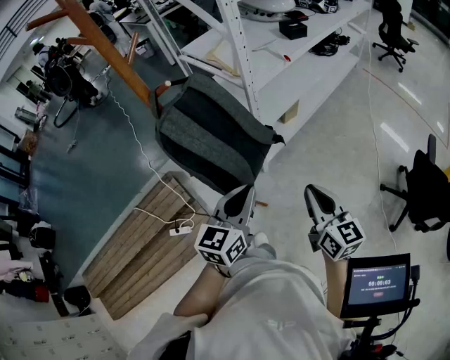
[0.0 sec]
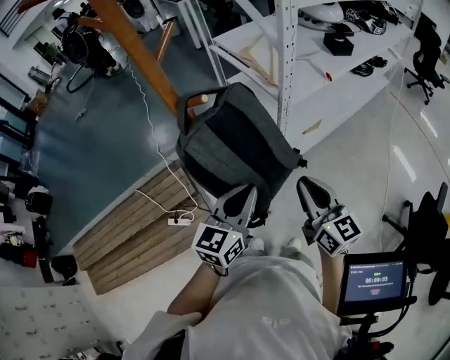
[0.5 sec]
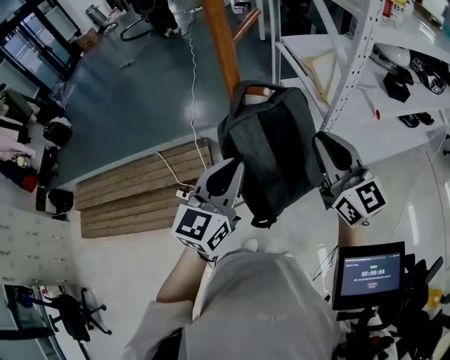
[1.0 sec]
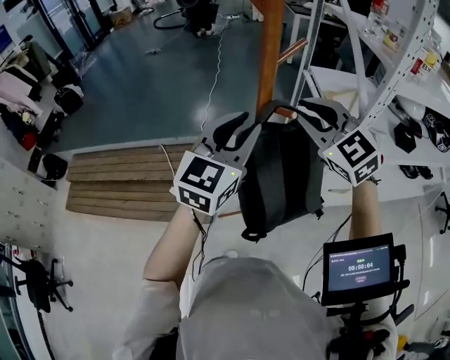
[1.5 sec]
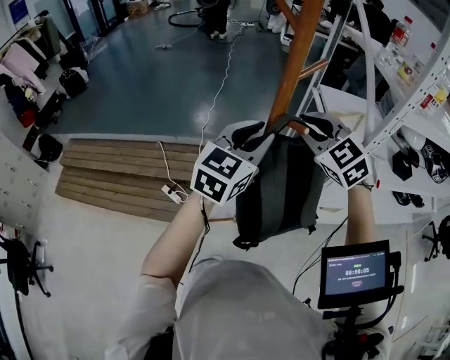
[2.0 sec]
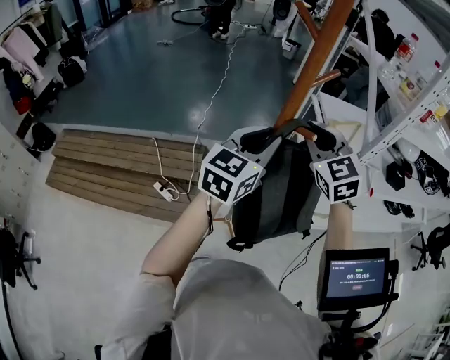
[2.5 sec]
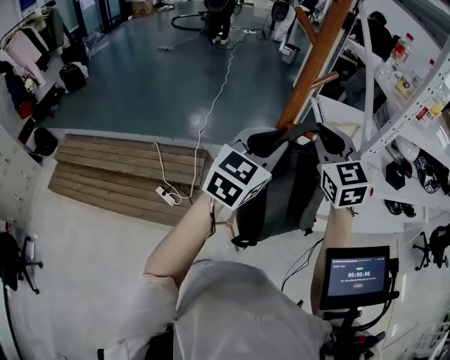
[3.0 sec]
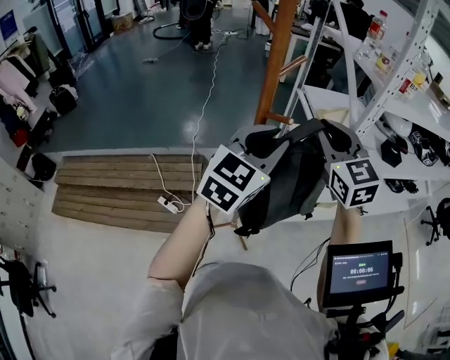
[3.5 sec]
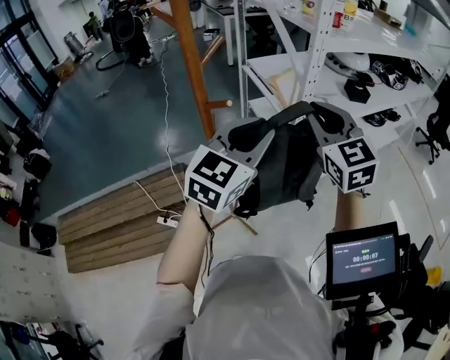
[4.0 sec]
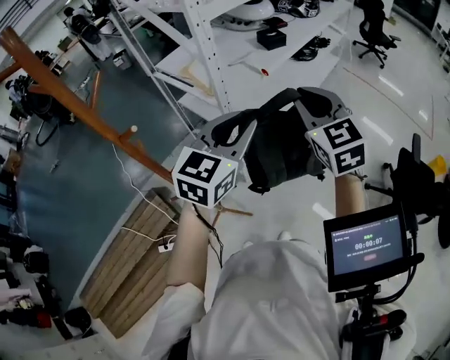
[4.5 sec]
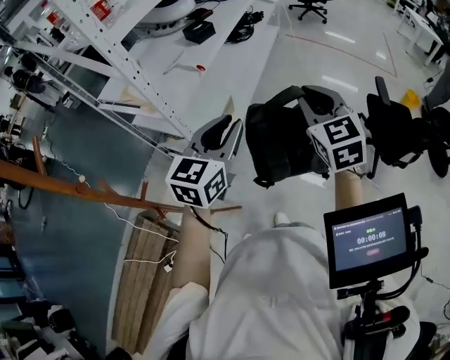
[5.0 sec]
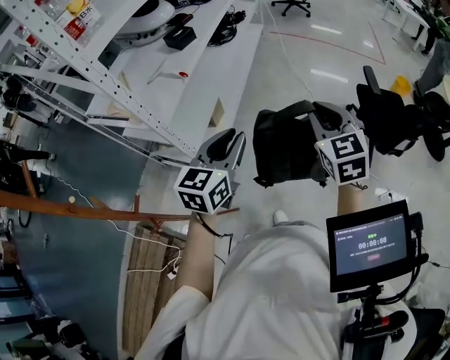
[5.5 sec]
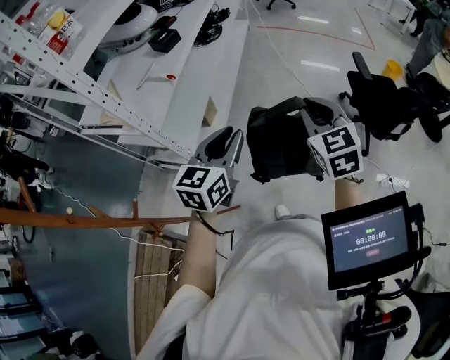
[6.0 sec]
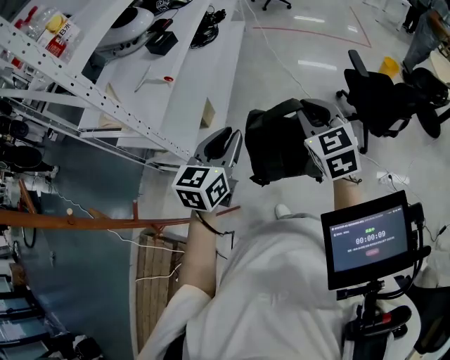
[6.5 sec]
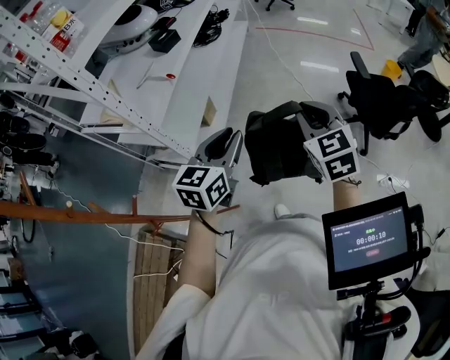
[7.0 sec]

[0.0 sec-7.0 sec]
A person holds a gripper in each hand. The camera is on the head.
0.0 sec to 2.0 sec: The right gripper shifts by some 50 cm, and changes its angle by roughly 80 degrees; the left gripper moves about 30 cm, turns by about 40 degrees, and opens its fingers.
2.0 sec to 3.5 sec: The left gripper is displaced backward by approximately 5 cm, while the right gripper goes roughly 10 cm to the right, upward and backward, and changes its angle by about 30 degrees.
3.5 sec to 5.0 sec: The right gripper moves approximately 50 cm, and rotates about 70 degrees, while the left gripper shifts by approximately 35 cm, and rotates roughly 50 degrees.
5.0 sec to 7.0 sec: The left gripper travels downward and to the right by approximately 10 cm, while the right gripper is displaced to the right and downward by about 10 cm.

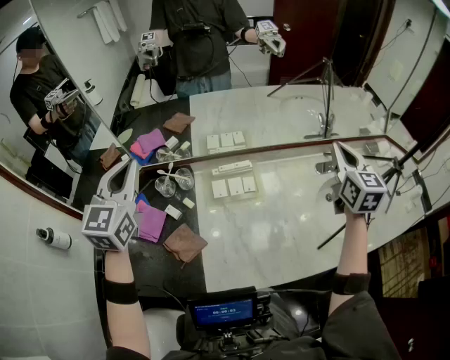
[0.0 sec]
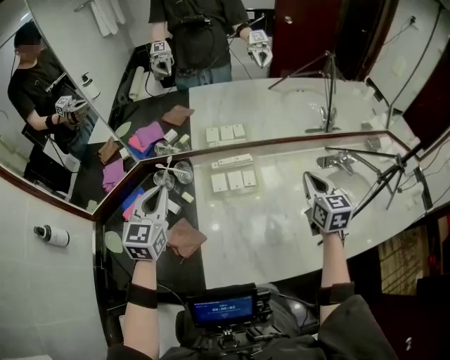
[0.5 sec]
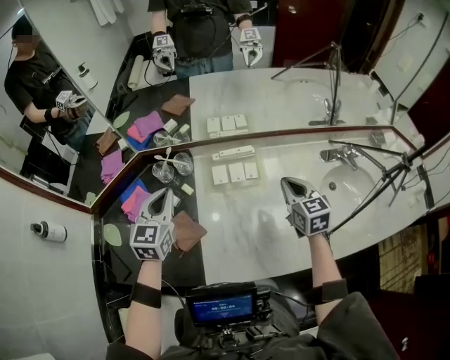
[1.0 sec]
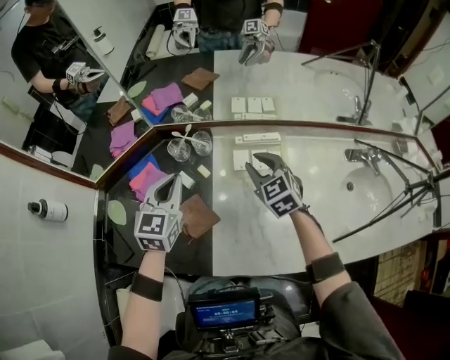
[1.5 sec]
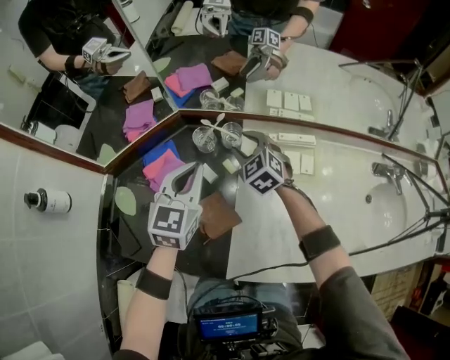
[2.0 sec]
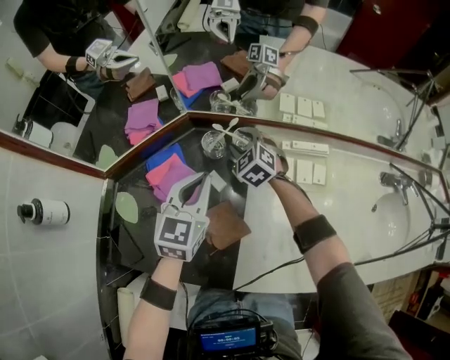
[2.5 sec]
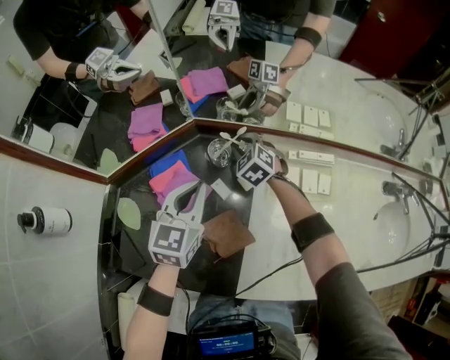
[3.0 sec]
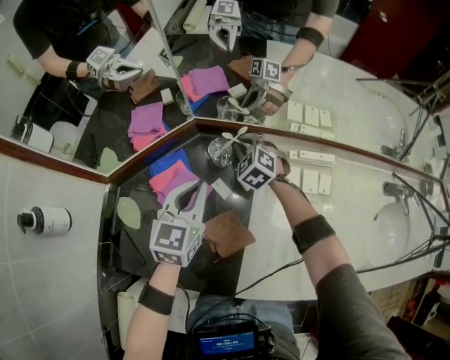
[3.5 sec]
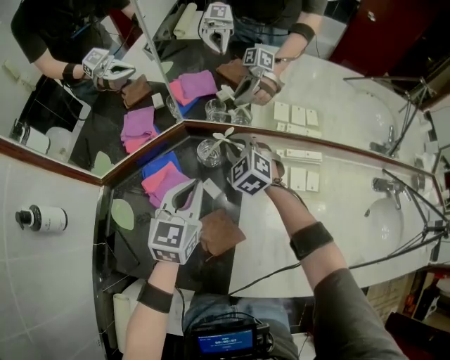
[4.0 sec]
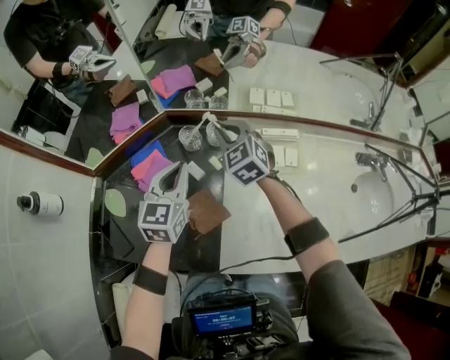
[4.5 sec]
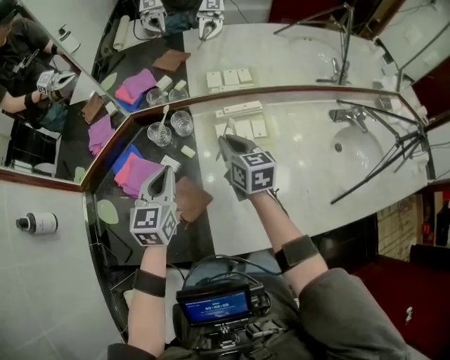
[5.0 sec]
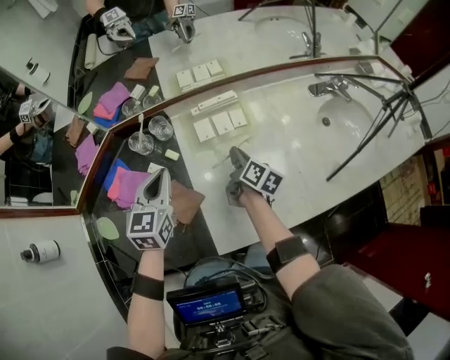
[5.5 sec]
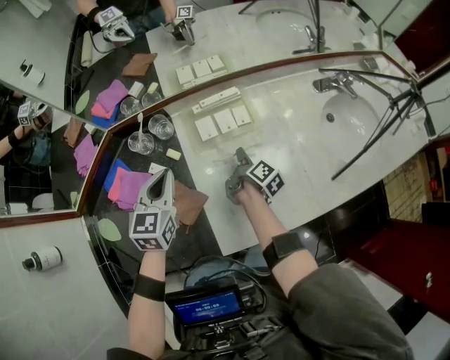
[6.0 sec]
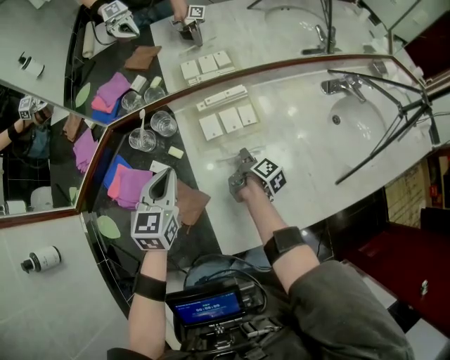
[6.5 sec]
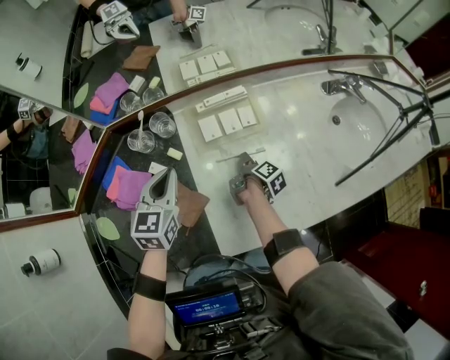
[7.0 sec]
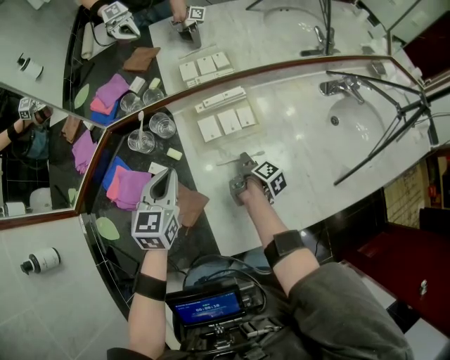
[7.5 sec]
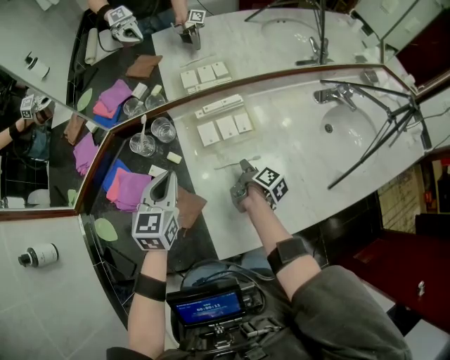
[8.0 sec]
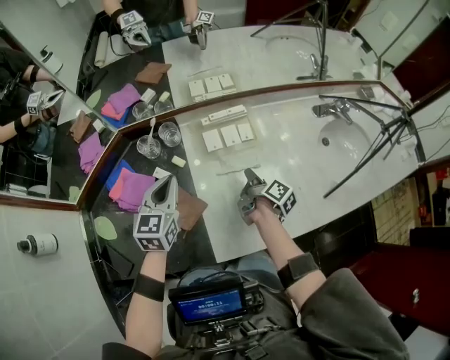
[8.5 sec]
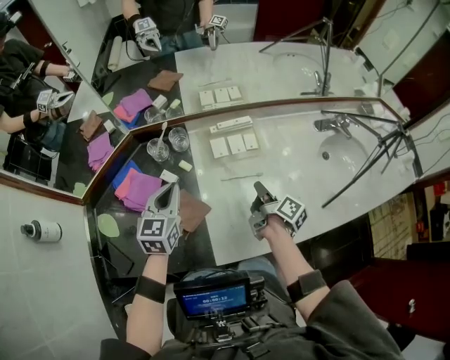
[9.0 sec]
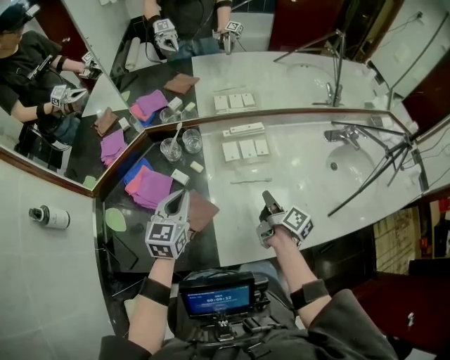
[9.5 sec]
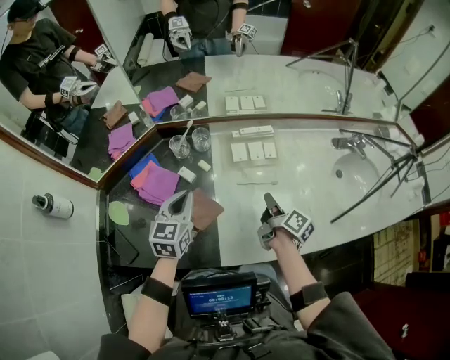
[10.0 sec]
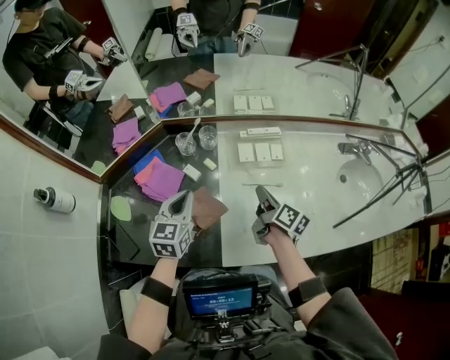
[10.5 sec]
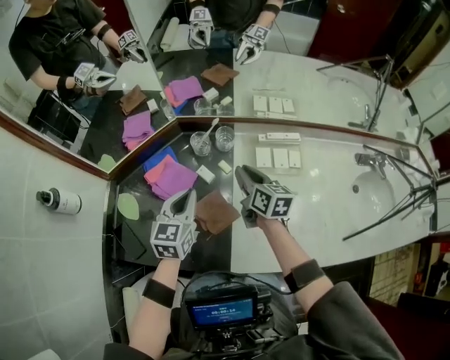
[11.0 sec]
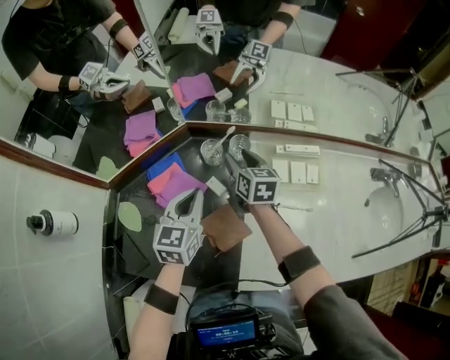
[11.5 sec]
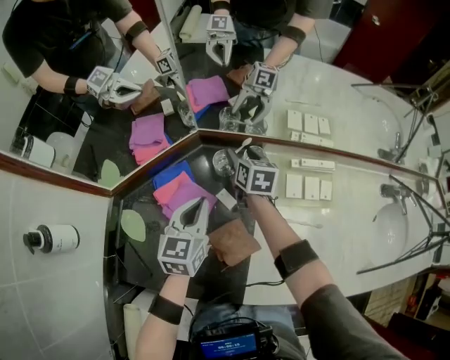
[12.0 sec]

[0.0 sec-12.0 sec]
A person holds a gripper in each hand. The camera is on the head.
0.0 sec to 2.0 sec: The left gripper travels downward by roughly 25 cm. The right gripper shifts some 60 cm to the left and downward, rotates roughly 60 degrees, and opens its fingers.
2.0 sec to 4.0 sec: The right gripper travels forward and to the left by approximately 10 cm, goes downward and returns, roughly 10 cm each way, and closes up; the left gripper shifts by some 5 cm.
4.0 sec to 6.0 sec: The left gripper moves approximately 15 cm. The right gripper ends up about 35 cm from where it was, and twists about 130 degrees clockwise, seen from behind.
8.0 sec to 10.0 sec: The left gripper goes some 10 cm backward. The right gripper shifts roughly 15 cm upward and backward, and changes its angle by some 30 degrees.
10.0 sec to 12.0 sec: The left gripper travels forward, to the left and downward by roughly 15 cm; the right gripper heads forward and to the left, covering approximately 40 cm, rolls counterclockwise, seen from behind, by roughly 50 degrees, and opens up.

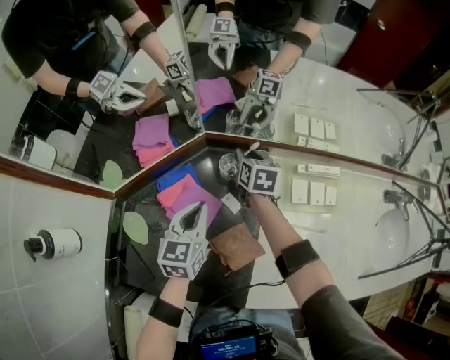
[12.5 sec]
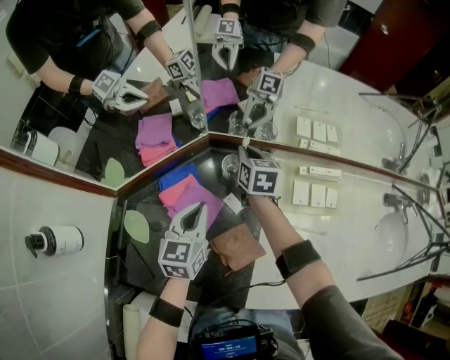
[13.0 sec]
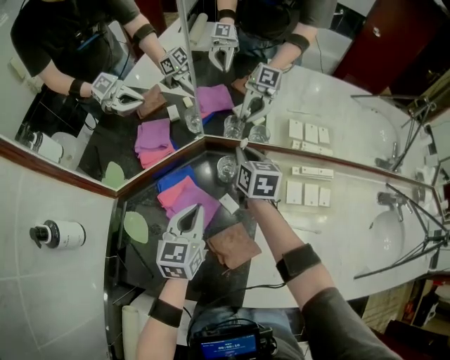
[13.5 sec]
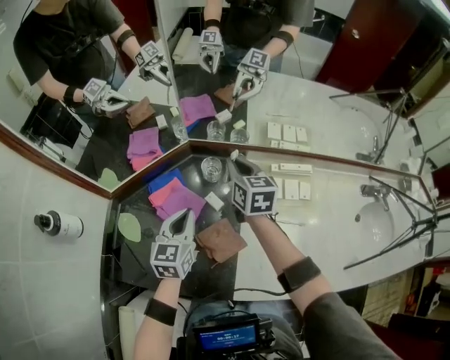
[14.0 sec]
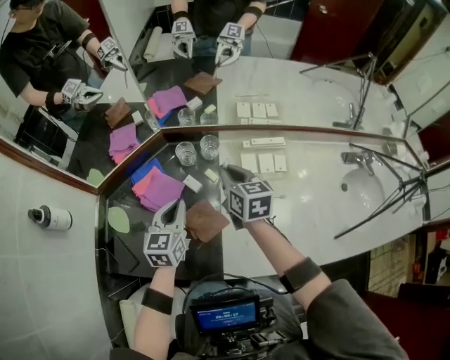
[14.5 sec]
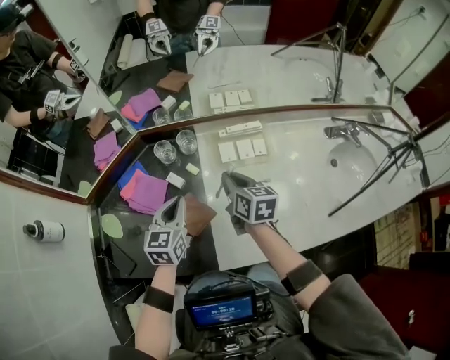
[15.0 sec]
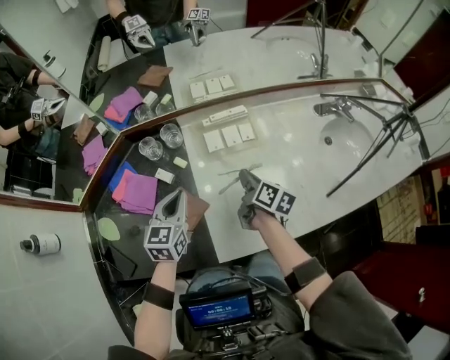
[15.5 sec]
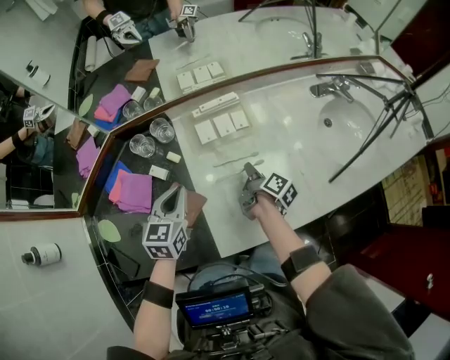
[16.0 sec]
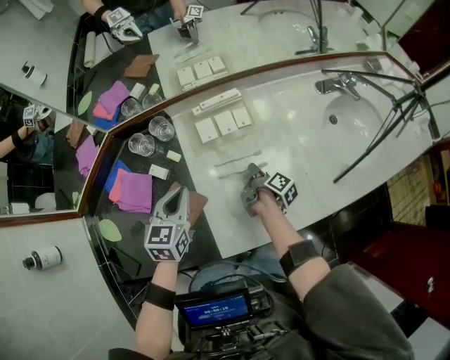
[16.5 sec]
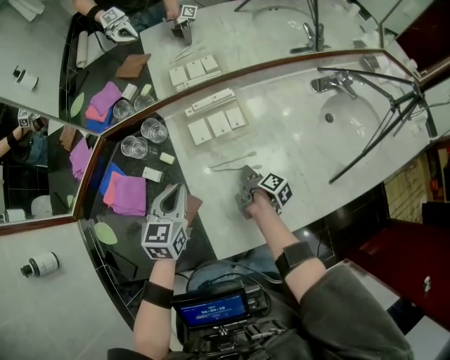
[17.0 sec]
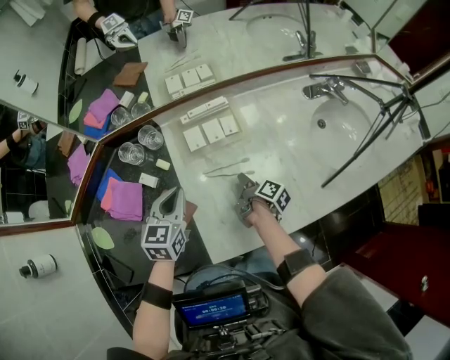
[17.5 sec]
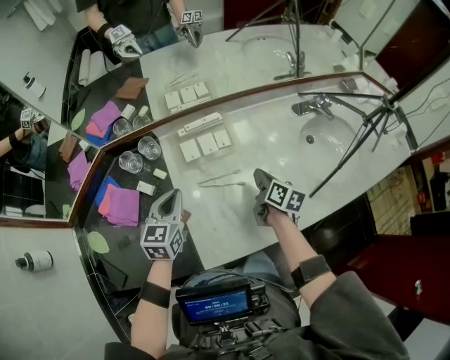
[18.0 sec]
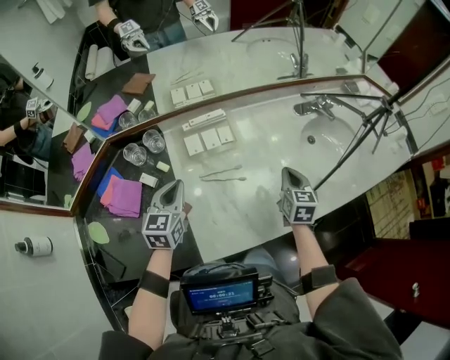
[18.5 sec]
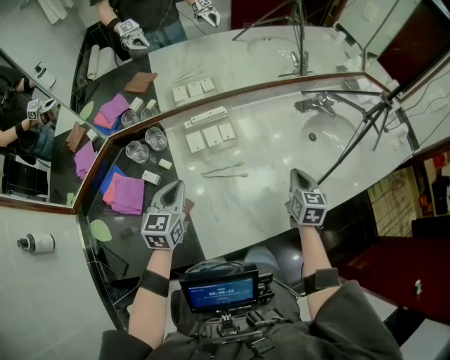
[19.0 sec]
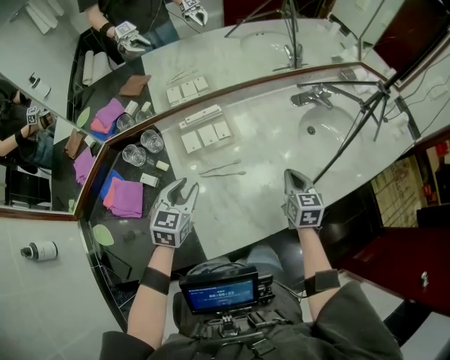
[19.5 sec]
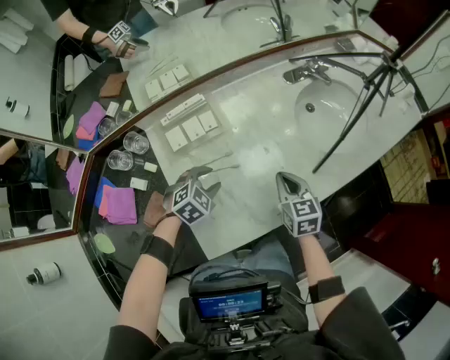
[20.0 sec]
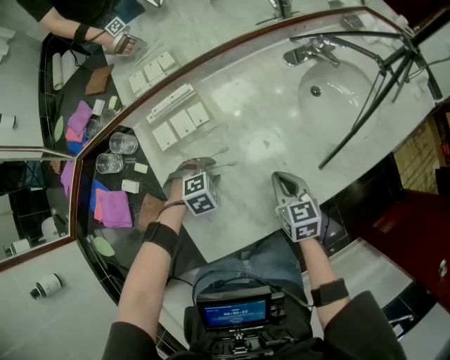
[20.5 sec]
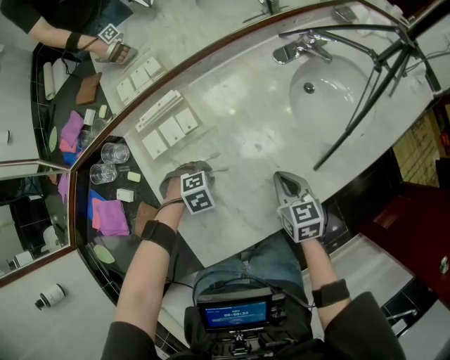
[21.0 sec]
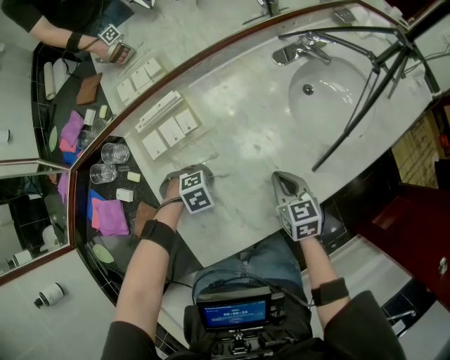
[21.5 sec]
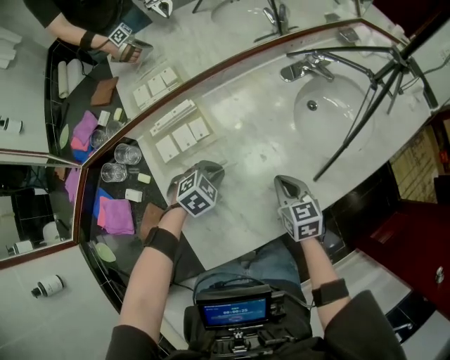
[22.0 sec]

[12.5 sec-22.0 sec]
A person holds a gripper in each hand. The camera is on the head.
12.5 sec to 14.5 sec: The left gripper heads backward and to the right, covering about 10 cm. The right gripper shifts about 25 cm backward, upward and to the right, and closes.
14.5 sec to 16.5 sec: The right gripper moves to the right and downward, roughly 35 cm, and rolls clockwise, seen from behind, by about 80 degrees. The left gripper shifts roughly 15 cm to the right, and turns by approximately 20 degrees.
16.5 sec to 18.0 sec: The right gripper goes some 15 cm upward and to the right, and rotates around the line of its fingers by roughly 40 degrees, counterclockwise from behind. The left gripper changes place by roughly 5 cm.
18.0 sec to 20.0 sec: The right gripper moves to the right and backward, about 10 cm, and rotates some 30 degrees. Meanwhile the left gripper moves to the right and downward, about 20 cm, points its fingers roughly 30 degrees further downward, and opens up.
20.0 sec to 22.0 sec: The left gripper moves approximately 10 cm downward and comes back, and closes its fingers. Meanwhile the right gripper changes place by about 5 cm.
